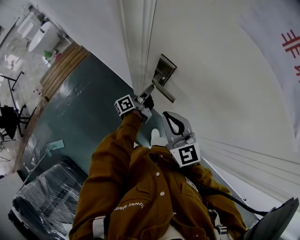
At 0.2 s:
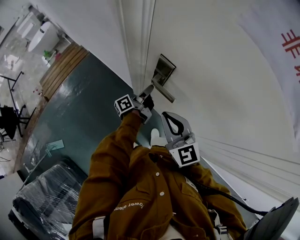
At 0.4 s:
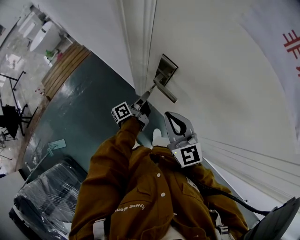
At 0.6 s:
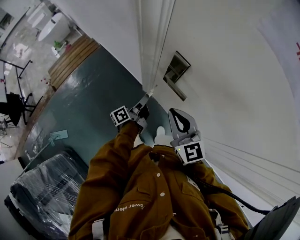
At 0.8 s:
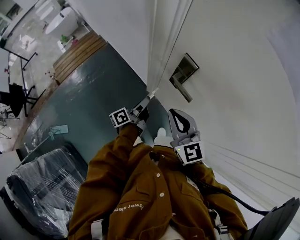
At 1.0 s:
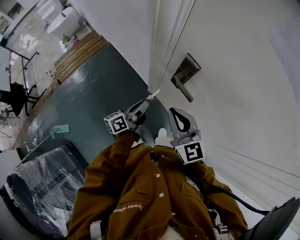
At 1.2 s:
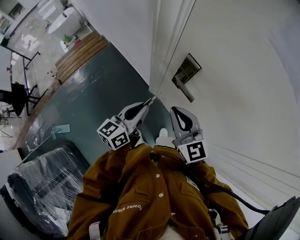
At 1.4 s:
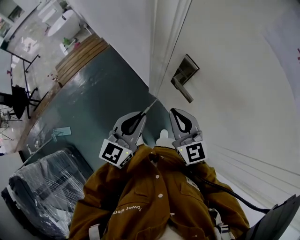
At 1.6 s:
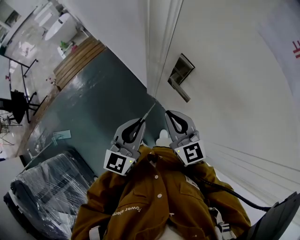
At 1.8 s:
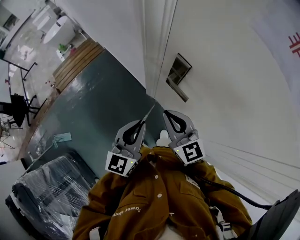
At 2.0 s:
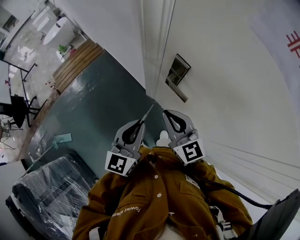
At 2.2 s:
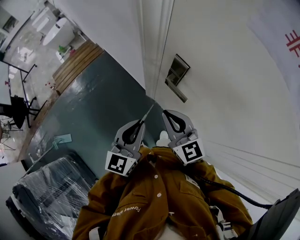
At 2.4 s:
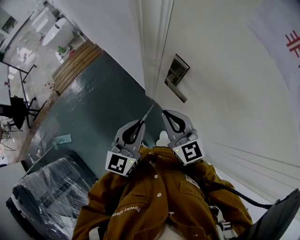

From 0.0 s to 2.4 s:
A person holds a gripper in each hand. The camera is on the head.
From 0.0 s to 1.2 s: The left gripper moves backward, upward and to the left, roughly 20 cm, and rotates around the line of its fingers by about 50 degrees, clockwise from behind.
From 1.2 s to 2.4 s: The left gripper is displaced backward by roughly 5 cm, and changes its angle by about 30 degrees.

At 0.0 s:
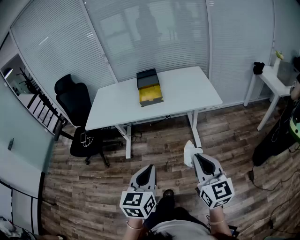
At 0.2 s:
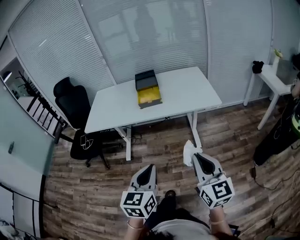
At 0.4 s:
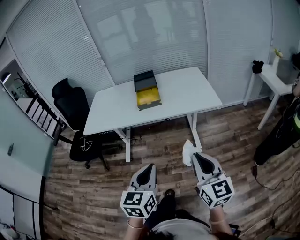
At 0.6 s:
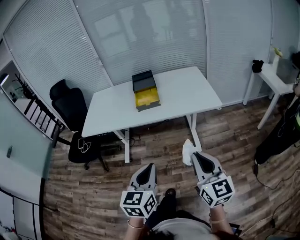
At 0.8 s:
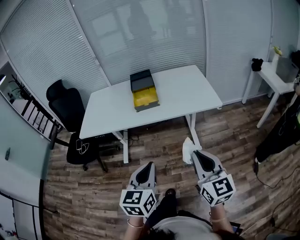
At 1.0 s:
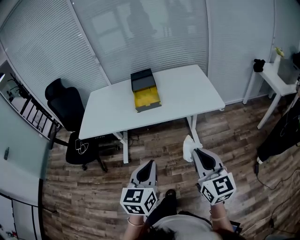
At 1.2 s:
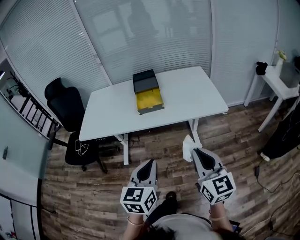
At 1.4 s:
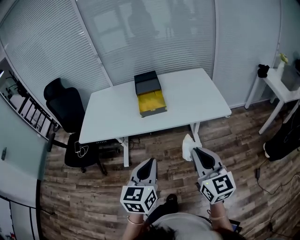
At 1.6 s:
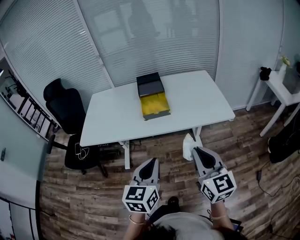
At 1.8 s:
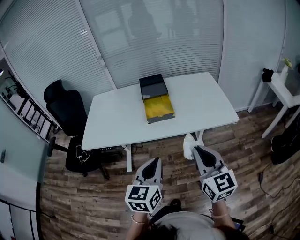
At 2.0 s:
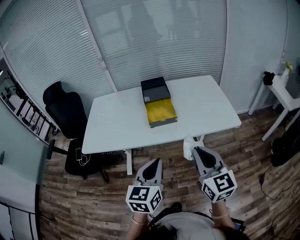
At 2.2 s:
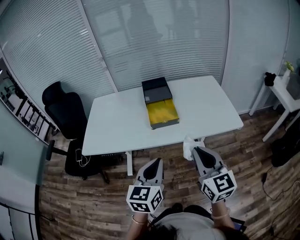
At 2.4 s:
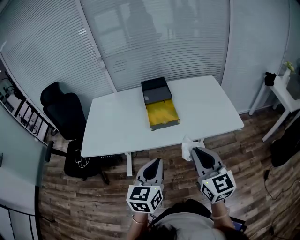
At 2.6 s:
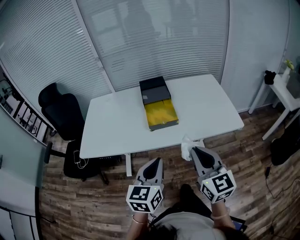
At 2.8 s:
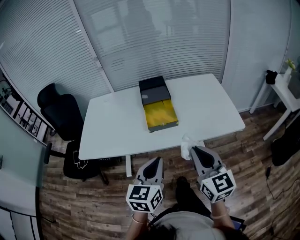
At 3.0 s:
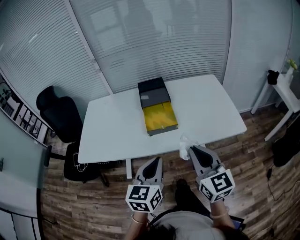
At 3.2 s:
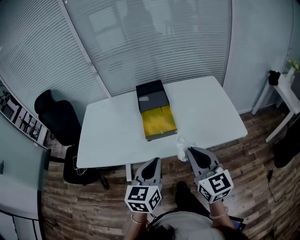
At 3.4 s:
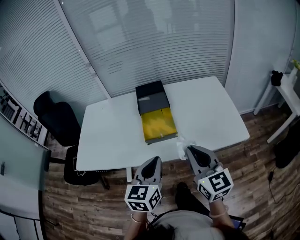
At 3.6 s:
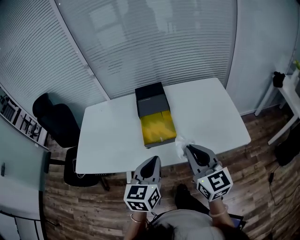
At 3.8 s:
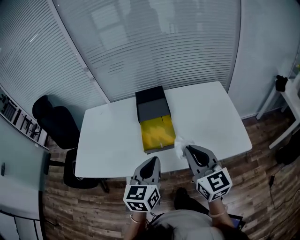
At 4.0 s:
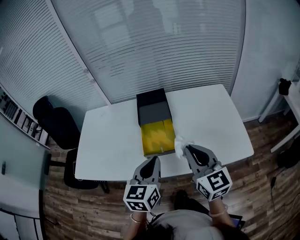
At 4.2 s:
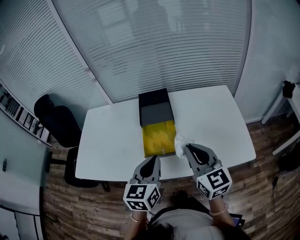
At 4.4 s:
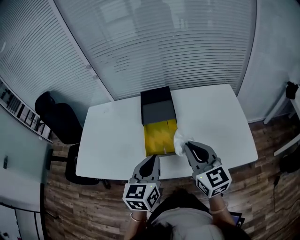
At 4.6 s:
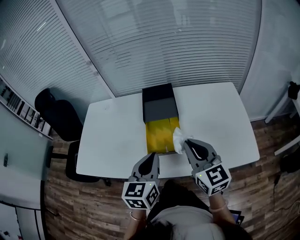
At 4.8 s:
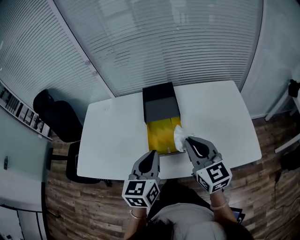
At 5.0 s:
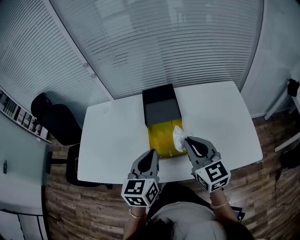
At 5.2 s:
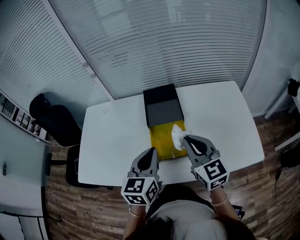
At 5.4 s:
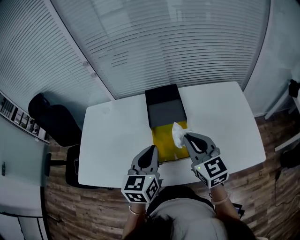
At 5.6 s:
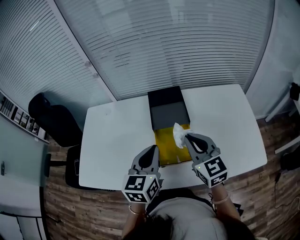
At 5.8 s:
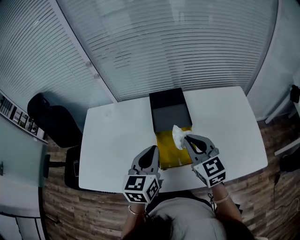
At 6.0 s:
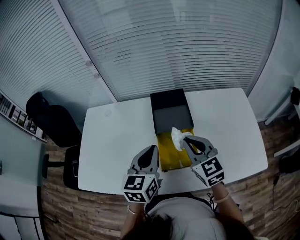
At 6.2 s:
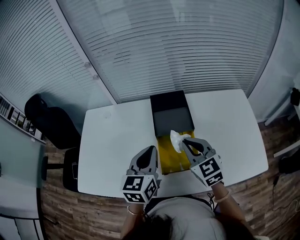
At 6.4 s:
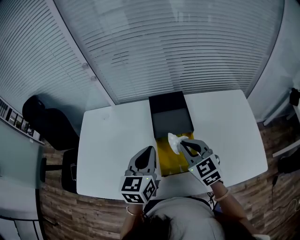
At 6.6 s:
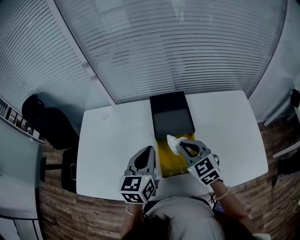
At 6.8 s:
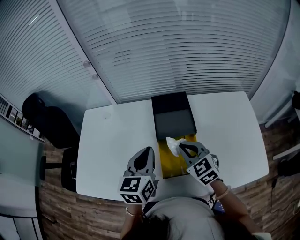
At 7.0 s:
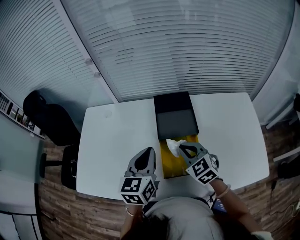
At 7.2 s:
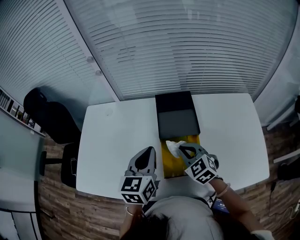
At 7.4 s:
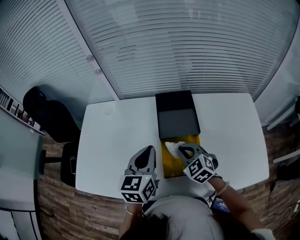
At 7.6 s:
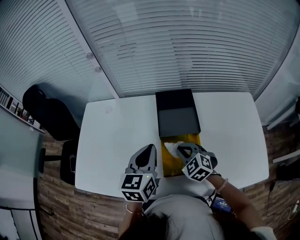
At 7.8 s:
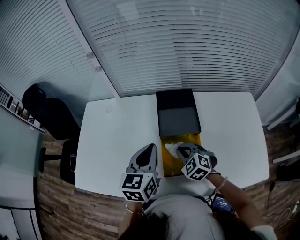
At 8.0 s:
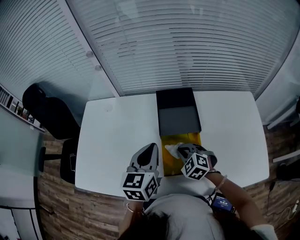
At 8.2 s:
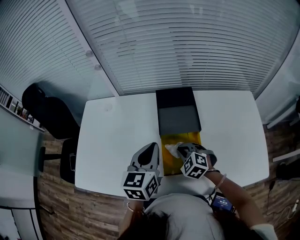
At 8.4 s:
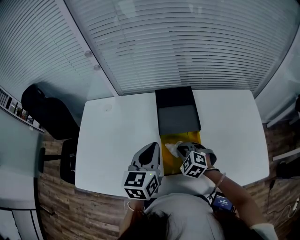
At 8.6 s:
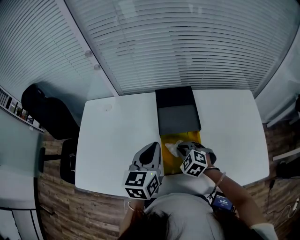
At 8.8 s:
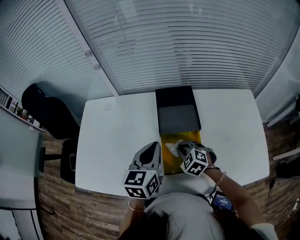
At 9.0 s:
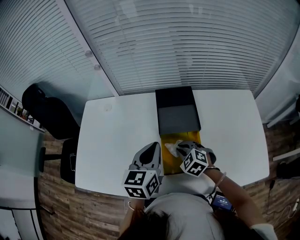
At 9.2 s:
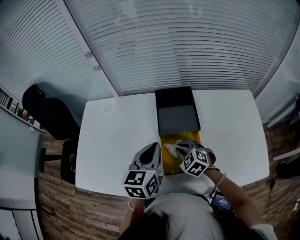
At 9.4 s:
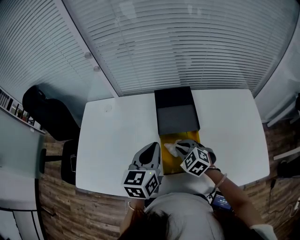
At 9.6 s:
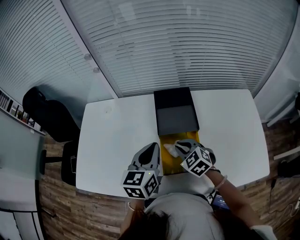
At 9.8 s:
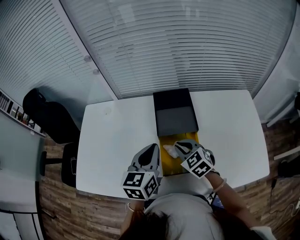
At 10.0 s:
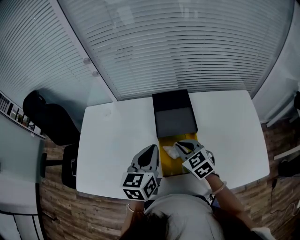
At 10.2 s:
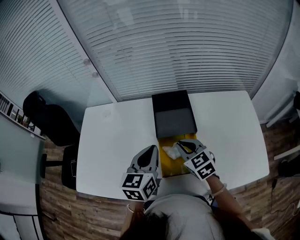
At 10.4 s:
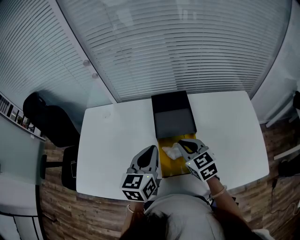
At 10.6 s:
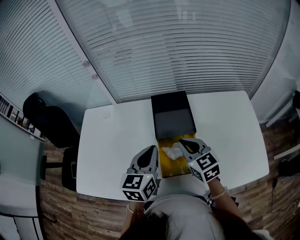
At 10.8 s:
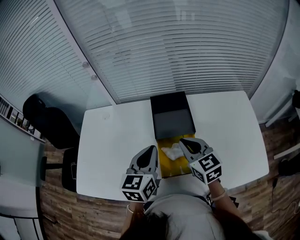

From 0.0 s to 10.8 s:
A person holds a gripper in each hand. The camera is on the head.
From 0.0 s to 1.6 s: The two grippers go roughly 20 cm forward.
From 1.6 s to 3.0 s: Both grippers move forward, some 15 cm.
From 3.0 s to 4.6 s: The two grippers go roughly 20 cm forward.
From 4.6 s to 6.2 s: The left gripper shifts roughly 15 cm forward and to the left. The right gripper is displaced forward, to the left and downward by about 15 cm.
From 6.2 s to 7.8 s: The right gripper travels downward by some 15 cm, and swivels roughly 40 degrees.
From 7.8 s to 9.2 s: The grippers make only small movements.
From 9.2 s to 10.8 s: The right gripper is displaced upward by about 15 cm, and rotates approximately 40 degrees.

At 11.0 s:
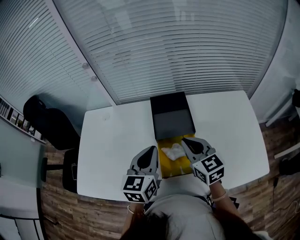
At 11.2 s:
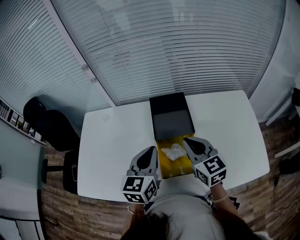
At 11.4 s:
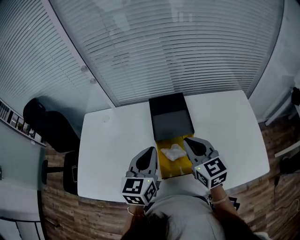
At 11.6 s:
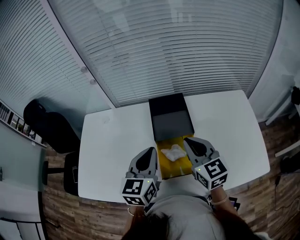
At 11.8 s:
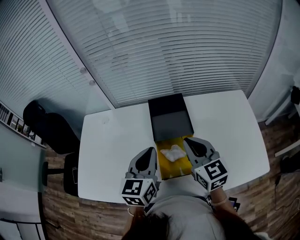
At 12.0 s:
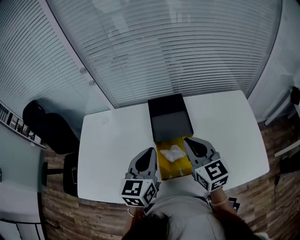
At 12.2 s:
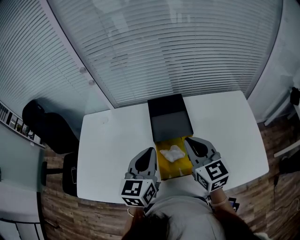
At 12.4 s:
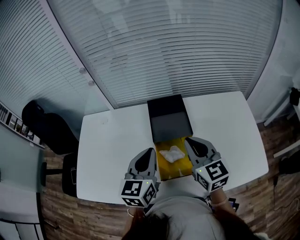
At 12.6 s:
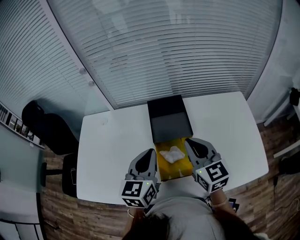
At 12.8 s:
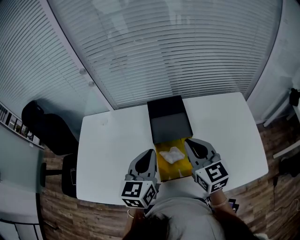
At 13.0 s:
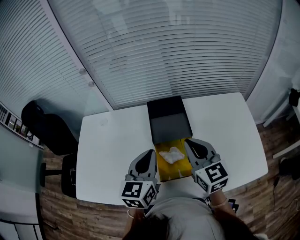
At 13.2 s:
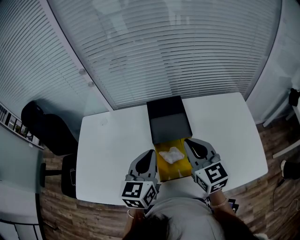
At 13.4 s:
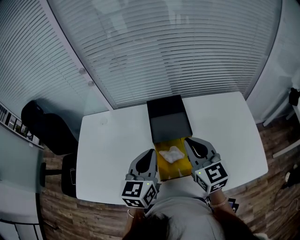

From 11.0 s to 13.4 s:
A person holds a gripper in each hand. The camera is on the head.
From 11.0 s to 12.2 s: The grippers stay close to where they were, moving slightly.
From 12.2 s to 13.4 s: Both grippers stay about where they are.

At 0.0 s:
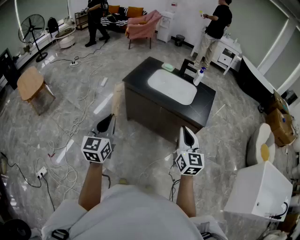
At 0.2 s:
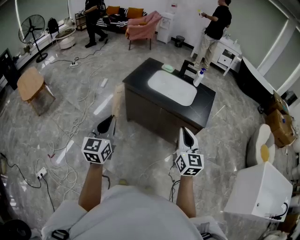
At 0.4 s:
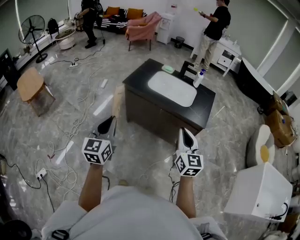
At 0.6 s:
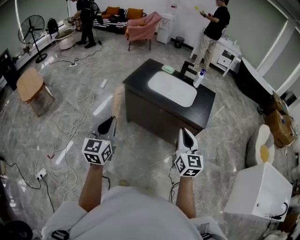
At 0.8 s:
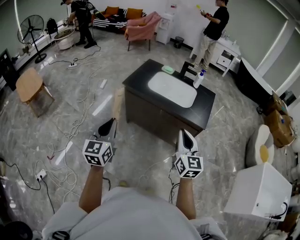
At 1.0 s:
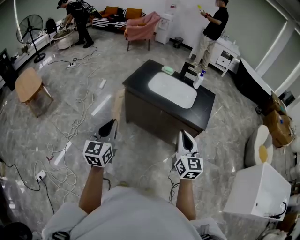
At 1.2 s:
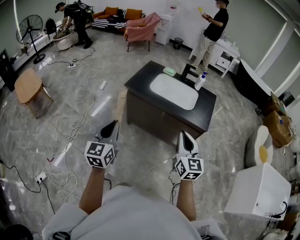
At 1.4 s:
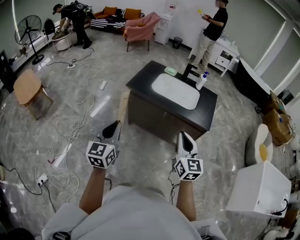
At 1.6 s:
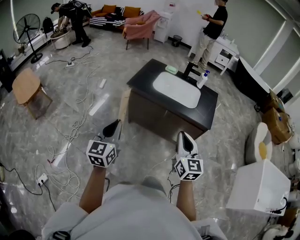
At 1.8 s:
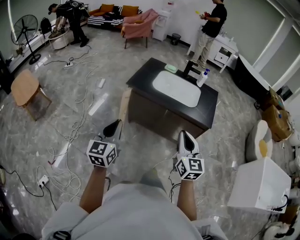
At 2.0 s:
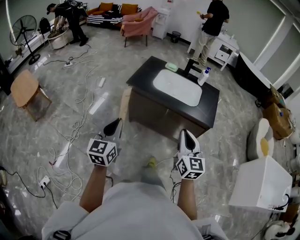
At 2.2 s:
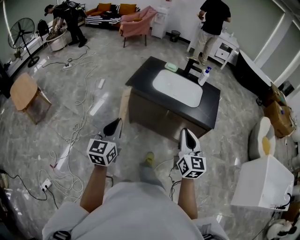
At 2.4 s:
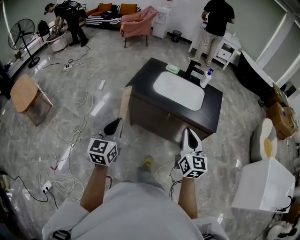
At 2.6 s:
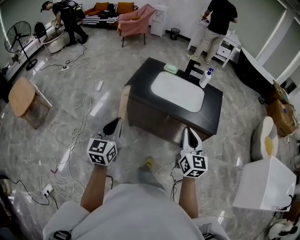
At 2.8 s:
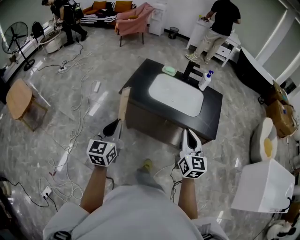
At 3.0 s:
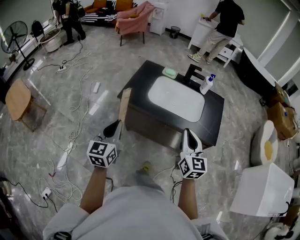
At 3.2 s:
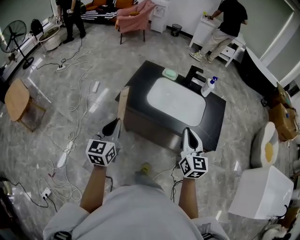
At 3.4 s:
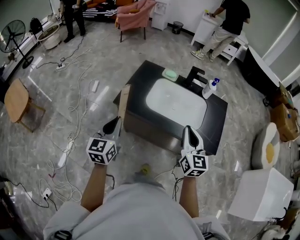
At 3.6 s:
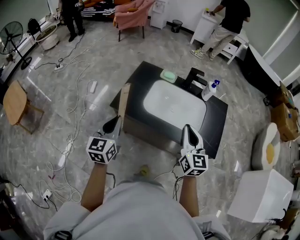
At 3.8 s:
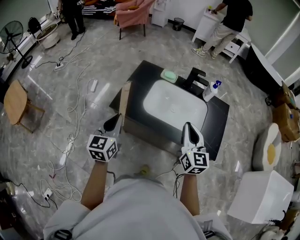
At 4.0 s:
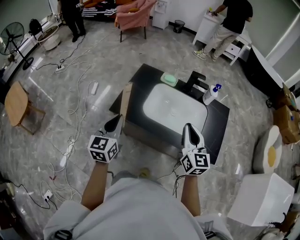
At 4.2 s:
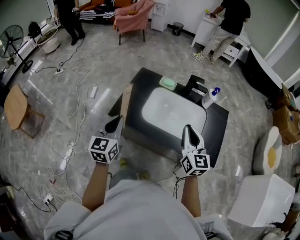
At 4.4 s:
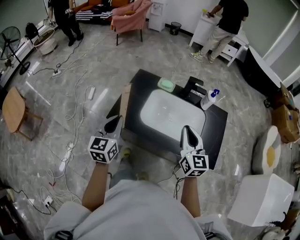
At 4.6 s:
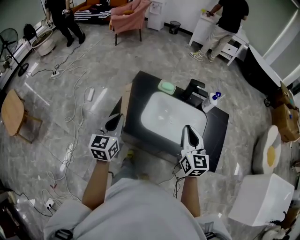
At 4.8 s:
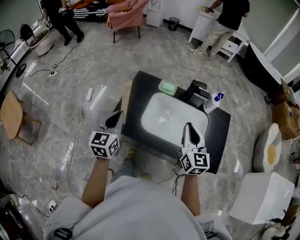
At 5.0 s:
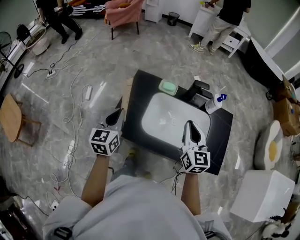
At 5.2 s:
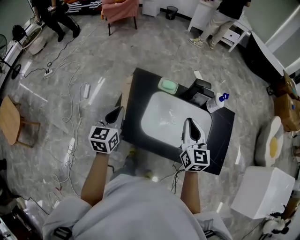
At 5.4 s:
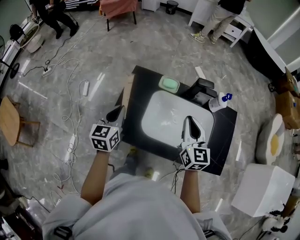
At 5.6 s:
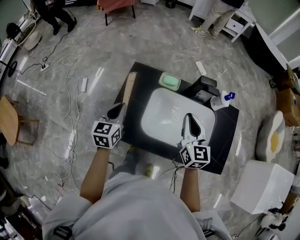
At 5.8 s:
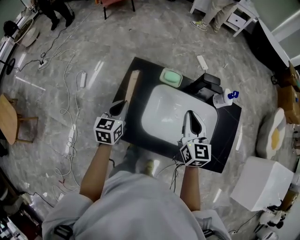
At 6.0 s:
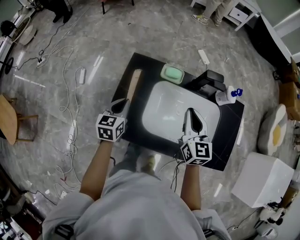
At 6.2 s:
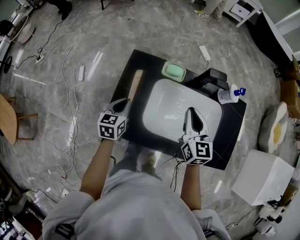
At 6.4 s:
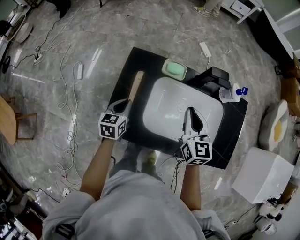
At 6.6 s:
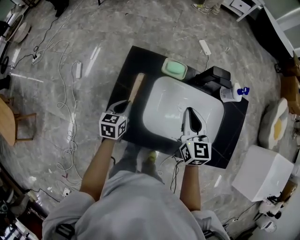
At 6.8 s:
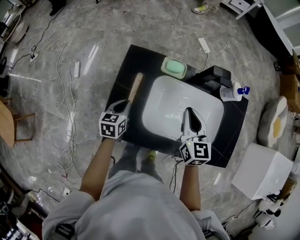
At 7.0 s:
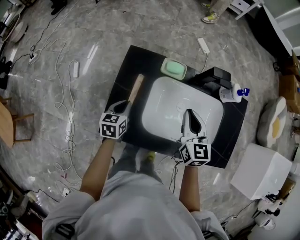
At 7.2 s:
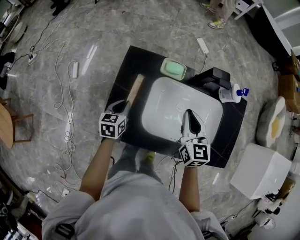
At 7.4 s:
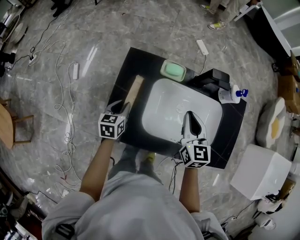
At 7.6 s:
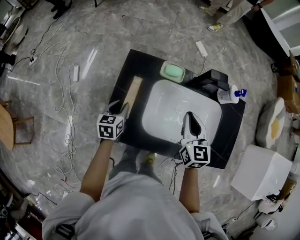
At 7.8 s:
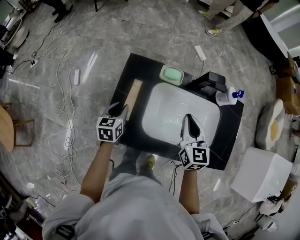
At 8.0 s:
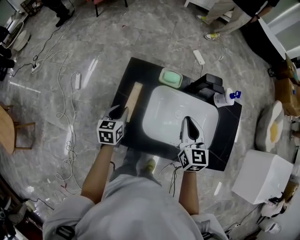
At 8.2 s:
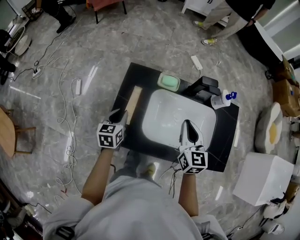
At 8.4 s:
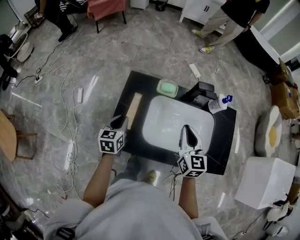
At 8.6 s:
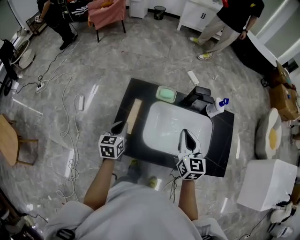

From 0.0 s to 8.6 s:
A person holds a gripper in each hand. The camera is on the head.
From 0.0 s to 1.4 s: Both grippers move to the left, roughly 5 cm.
From 1.4 s to 2.8 s: The grippers both shift forward by roughly 20 cm.
From 2.8 s to 4.4 s: Both grippers travel together forward, roughly 30 cm.
From 4.4 s to 5.8 s: The left gripper is displaced forward and downward by approximately 30 cm. Meanwhile the right gripper travels forward by roughly 25 cm.
From 5.8 s to 7.2 s: The right gripper heads downward, covering about 5 cm. The left gripper goes some 15 cm downward.
From 7.2 s to 8.6 s: The grippers both shift upward and backward by about 15 cm. The left gripper opens, then closes once more.
